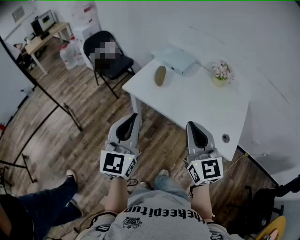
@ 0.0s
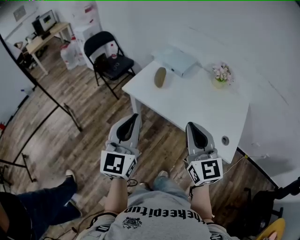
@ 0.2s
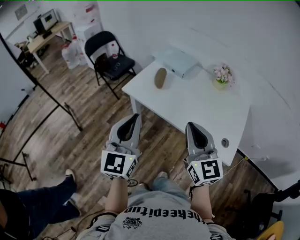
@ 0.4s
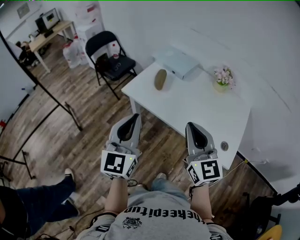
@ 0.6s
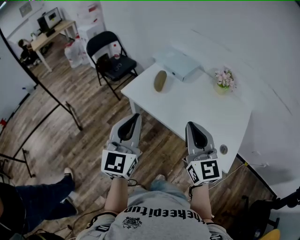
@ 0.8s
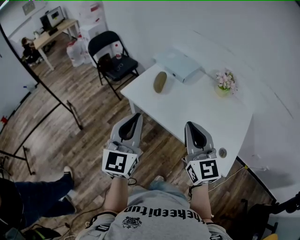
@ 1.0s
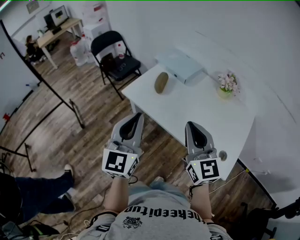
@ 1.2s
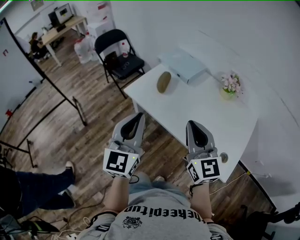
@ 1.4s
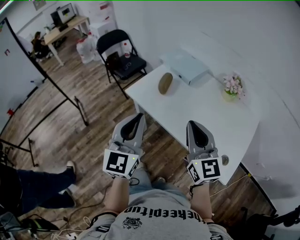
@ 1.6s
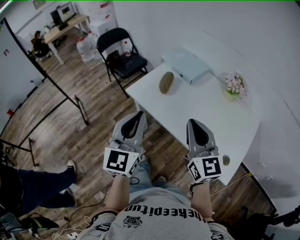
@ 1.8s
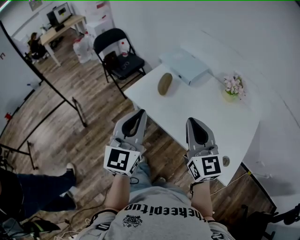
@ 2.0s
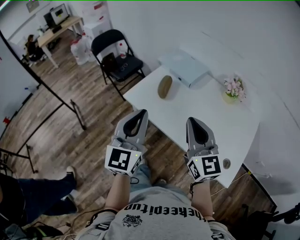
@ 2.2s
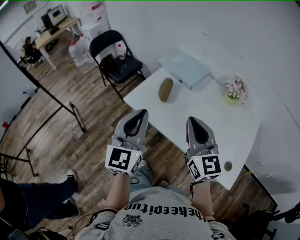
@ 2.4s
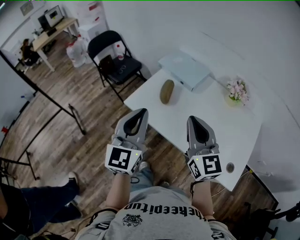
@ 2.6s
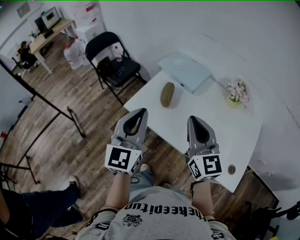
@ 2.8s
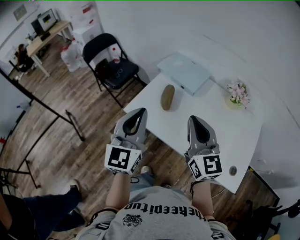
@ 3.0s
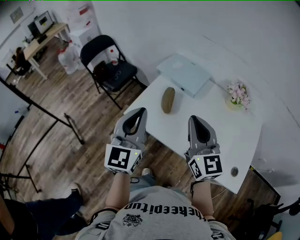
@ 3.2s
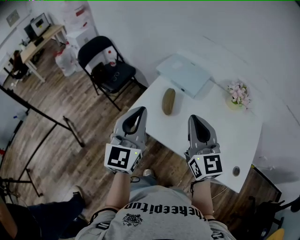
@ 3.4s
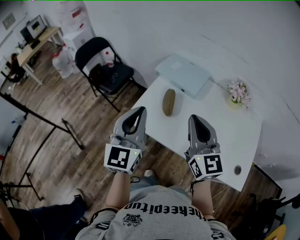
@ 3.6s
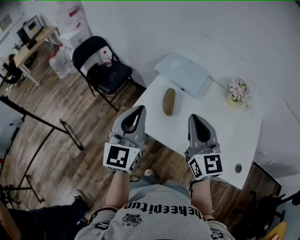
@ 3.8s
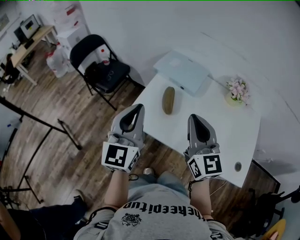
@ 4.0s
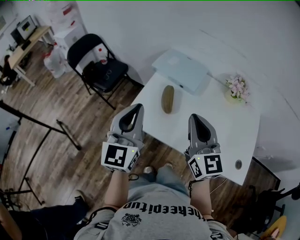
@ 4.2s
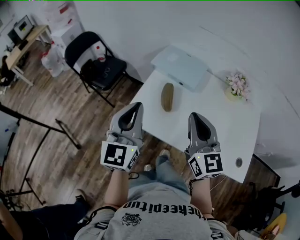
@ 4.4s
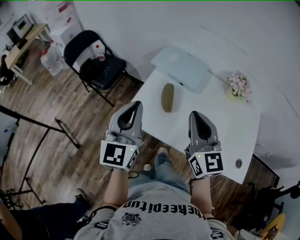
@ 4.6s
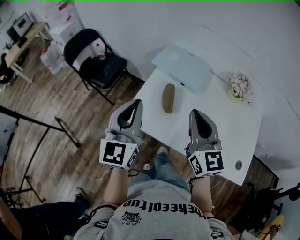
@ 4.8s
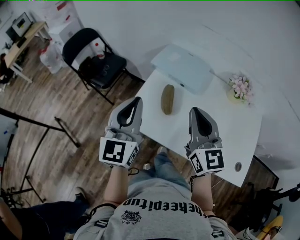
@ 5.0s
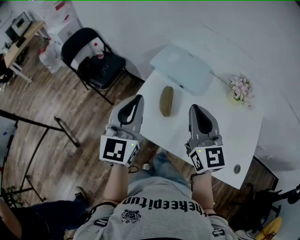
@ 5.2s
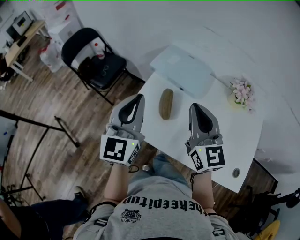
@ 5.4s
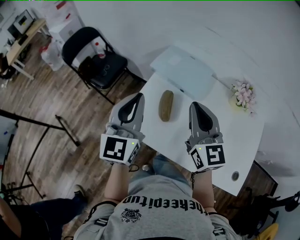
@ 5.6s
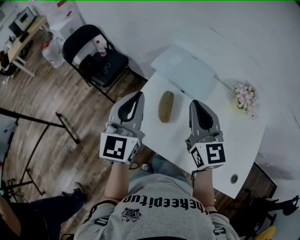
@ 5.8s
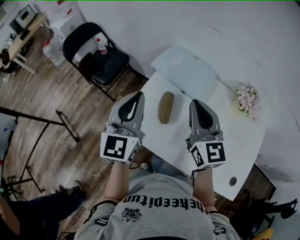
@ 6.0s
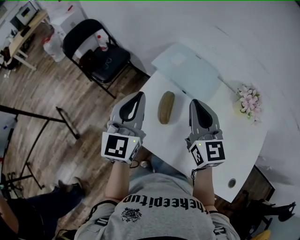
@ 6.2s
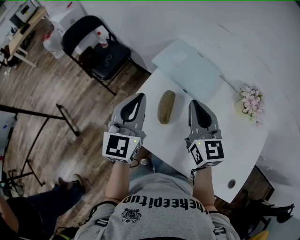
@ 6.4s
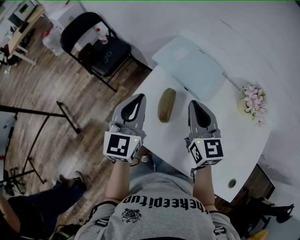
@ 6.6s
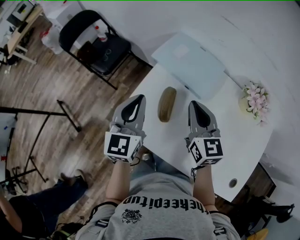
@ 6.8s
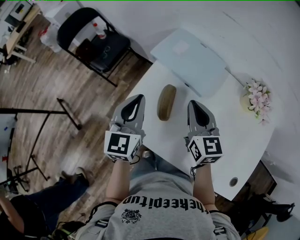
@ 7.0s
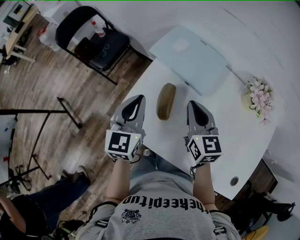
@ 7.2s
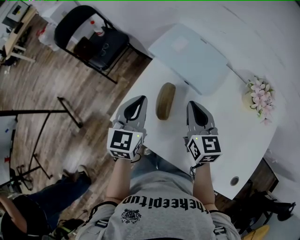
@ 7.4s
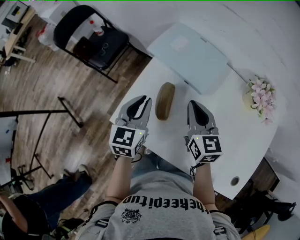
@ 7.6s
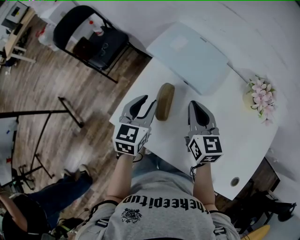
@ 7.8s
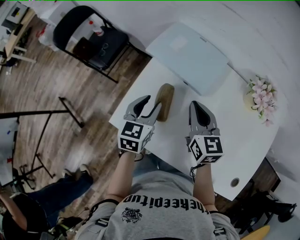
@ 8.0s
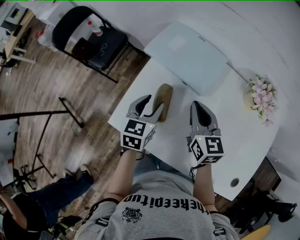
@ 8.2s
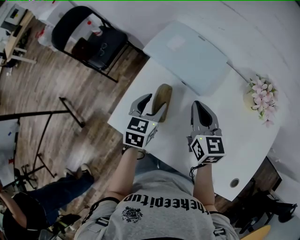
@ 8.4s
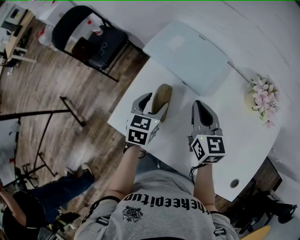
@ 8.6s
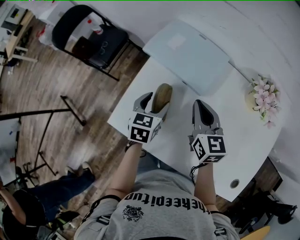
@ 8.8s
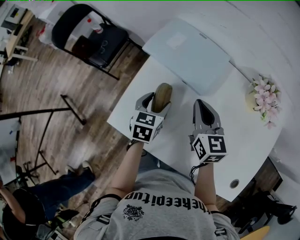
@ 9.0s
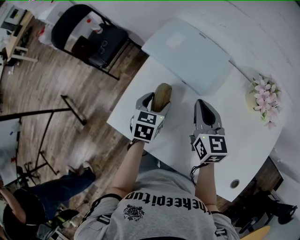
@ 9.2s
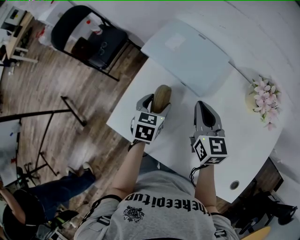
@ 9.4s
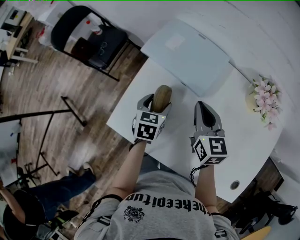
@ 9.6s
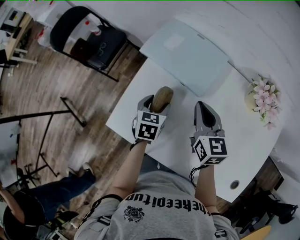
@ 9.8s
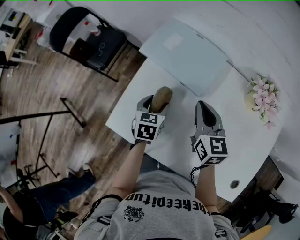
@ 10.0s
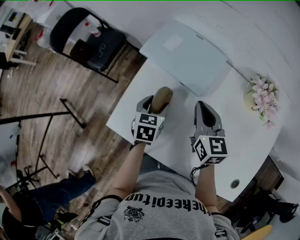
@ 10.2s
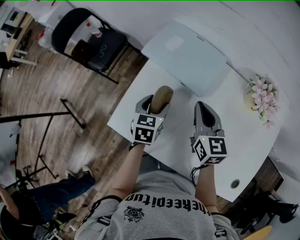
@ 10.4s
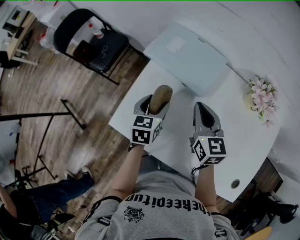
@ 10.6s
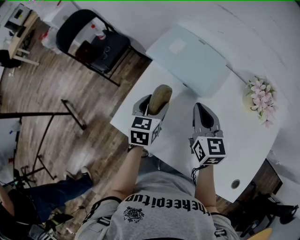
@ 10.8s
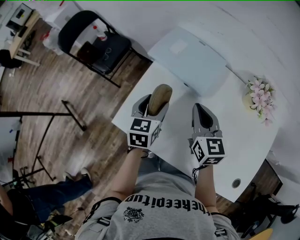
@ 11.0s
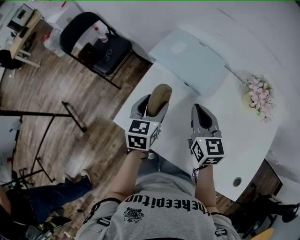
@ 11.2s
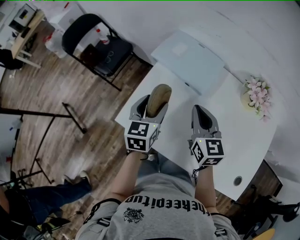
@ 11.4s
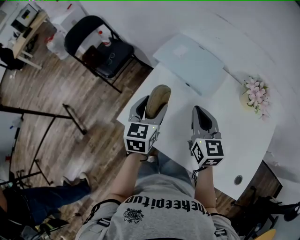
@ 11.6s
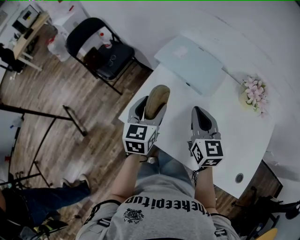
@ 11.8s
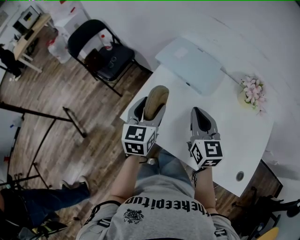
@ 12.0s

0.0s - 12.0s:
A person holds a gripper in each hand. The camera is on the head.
0.0s - 1.6s: The left gripper moves to the right and forward, about 10 cm. Meanwhile the right gripper heads forward and to the right, covering about 10 cm.
1.6s - 3.0s: The right gripper heads forward and to the left, covering some 15 cm; the left gripper travels forward by some 15 cm.
3.0s - 4.4s: The right gripper moves about 5 cm; the left gripper heads forward and to the left, covering about 10 cm.
4.4s - 6.0s: Both grippers travel together forward, approximately 15 cm.
6.0s - 7.6s: The two grippers go about 15 cm downward. The right gripper turns by about 20 degrees. The left gripper changes its angle by approximately 30 degrees.
7.6s - 9.0s: The left gripper travels downward and to the right by roughly 10 cm, changes its angle by about 20 degrees, and opens its fingers.
9.0s - 10.4s: The grippers move only a little.
10.4s - 12.0s: The left gripper travels upward, backward and to the left by roughly 15 cm, and rotates roughly 20 degrees. Meanwhile the right gripper goes roughly 15 cm backward, upward and to the left.

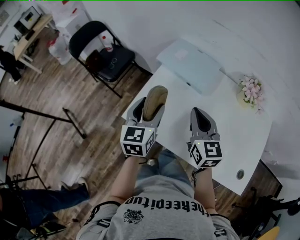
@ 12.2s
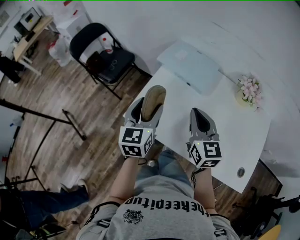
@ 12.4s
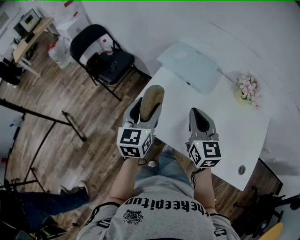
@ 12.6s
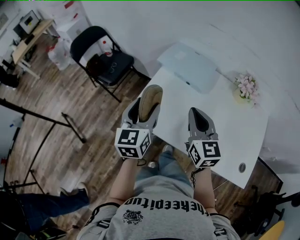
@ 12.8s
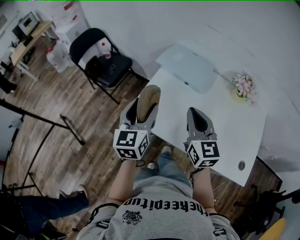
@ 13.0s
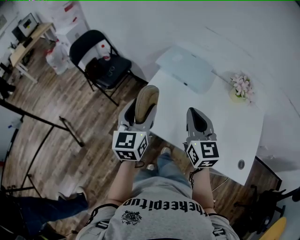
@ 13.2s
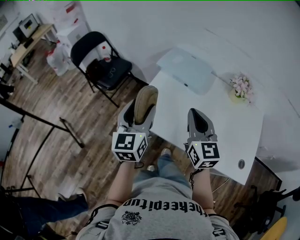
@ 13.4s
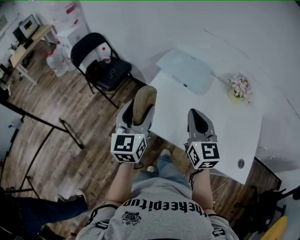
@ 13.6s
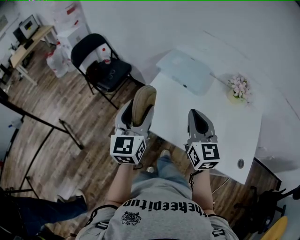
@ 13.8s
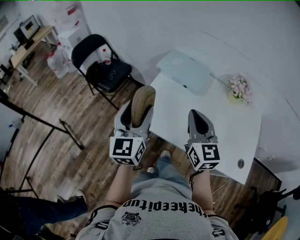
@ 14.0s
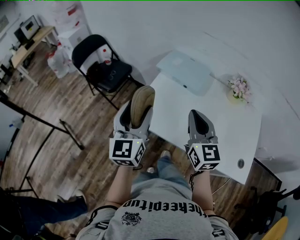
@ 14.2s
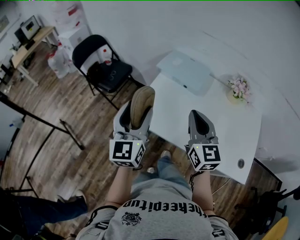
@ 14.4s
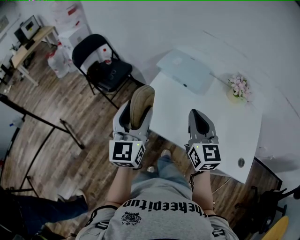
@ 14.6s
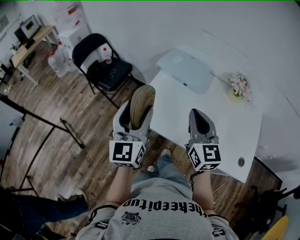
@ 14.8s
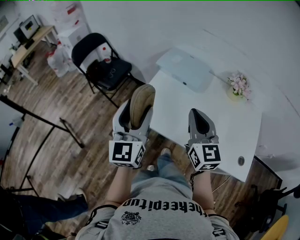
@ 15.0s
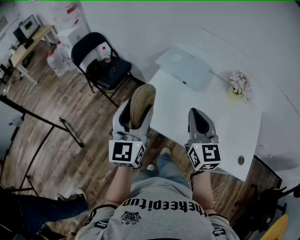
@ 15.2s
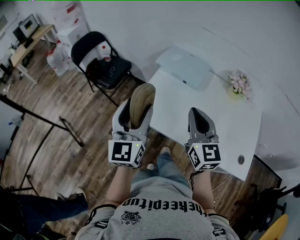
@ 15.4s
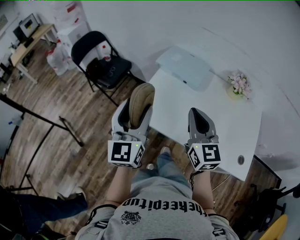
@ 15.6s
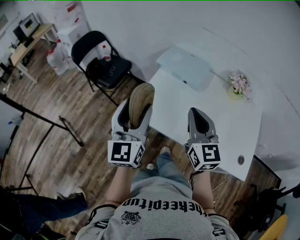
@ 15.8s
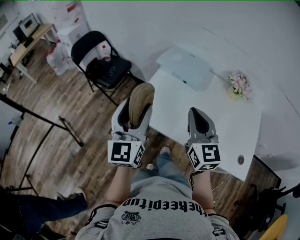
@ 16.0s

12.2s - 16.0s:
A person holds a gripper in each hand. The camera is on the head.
12.2s - 13.4s: The left gripper heads backward, to the left and upward, covering roughly 10 cm, while the right gripper goes roughly 5 cm backward.
13.4s - 14.8s: The left gripper moves roughly 5 cm.
14.8s - 16.0s: Neither gripper changes place.

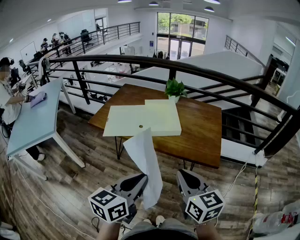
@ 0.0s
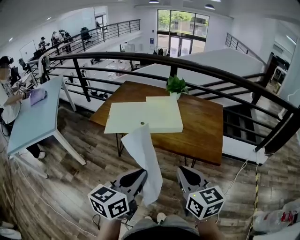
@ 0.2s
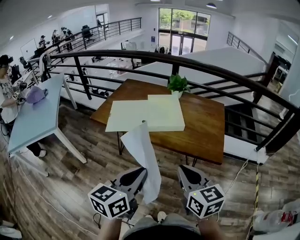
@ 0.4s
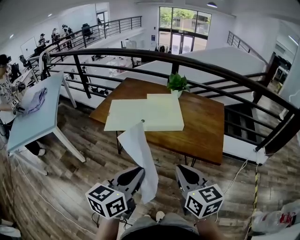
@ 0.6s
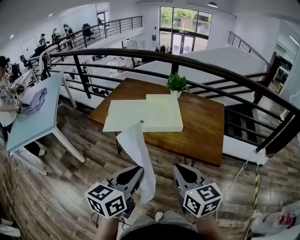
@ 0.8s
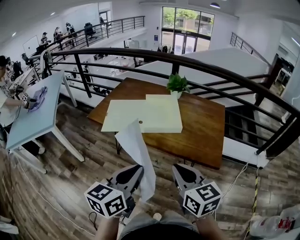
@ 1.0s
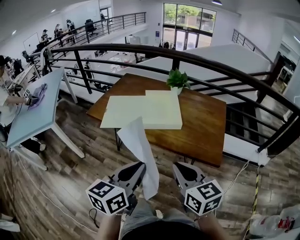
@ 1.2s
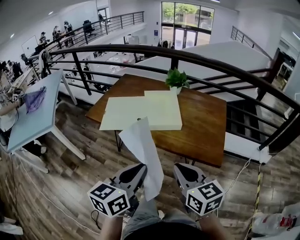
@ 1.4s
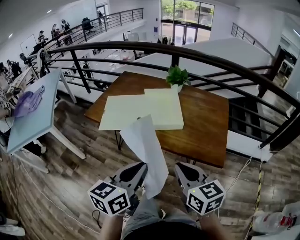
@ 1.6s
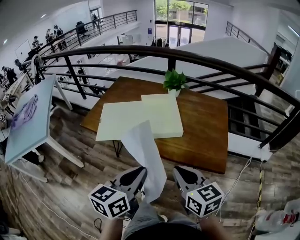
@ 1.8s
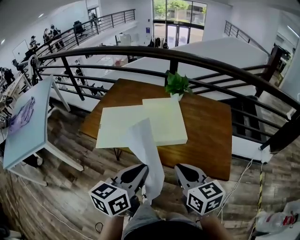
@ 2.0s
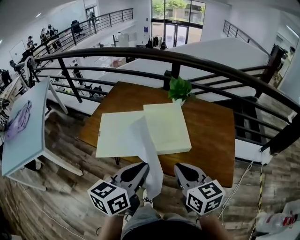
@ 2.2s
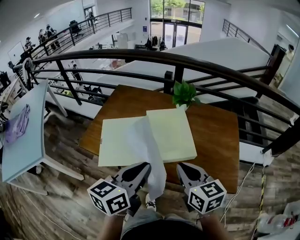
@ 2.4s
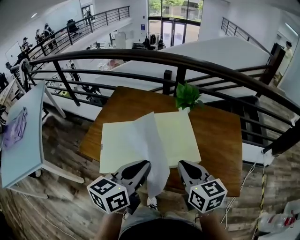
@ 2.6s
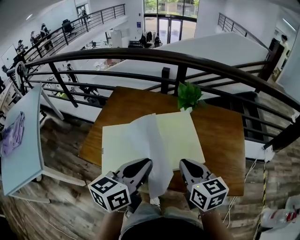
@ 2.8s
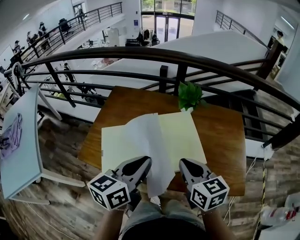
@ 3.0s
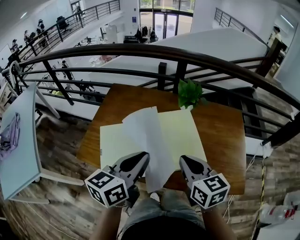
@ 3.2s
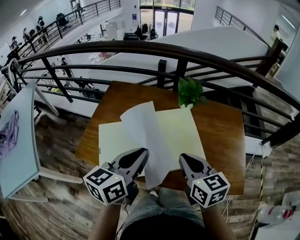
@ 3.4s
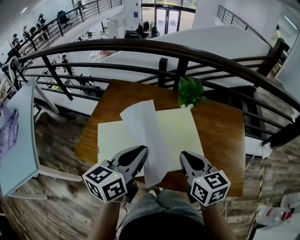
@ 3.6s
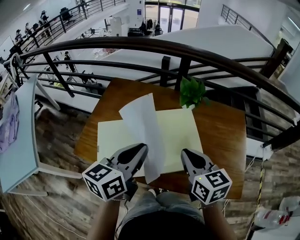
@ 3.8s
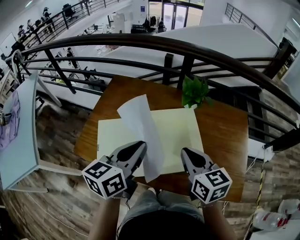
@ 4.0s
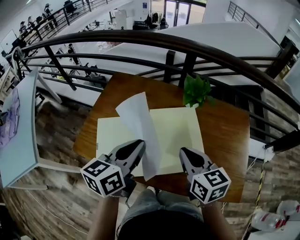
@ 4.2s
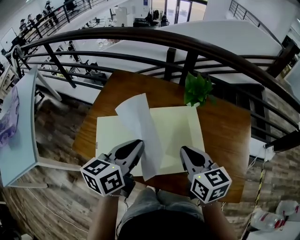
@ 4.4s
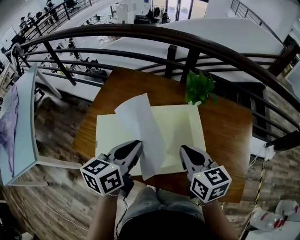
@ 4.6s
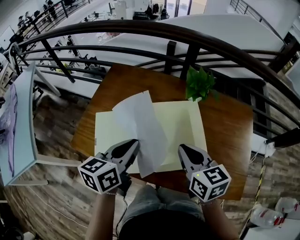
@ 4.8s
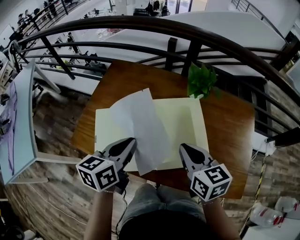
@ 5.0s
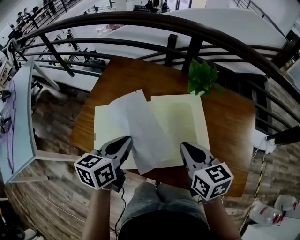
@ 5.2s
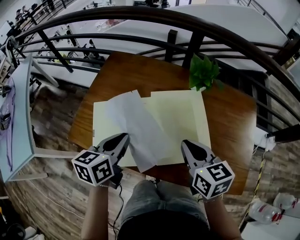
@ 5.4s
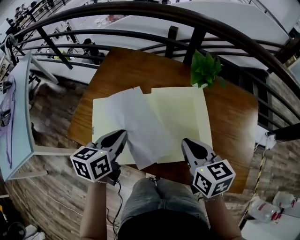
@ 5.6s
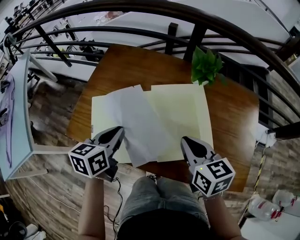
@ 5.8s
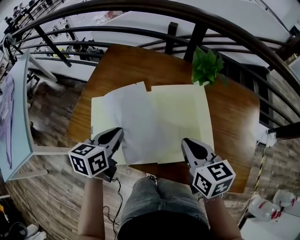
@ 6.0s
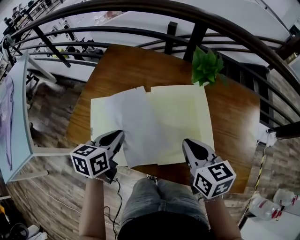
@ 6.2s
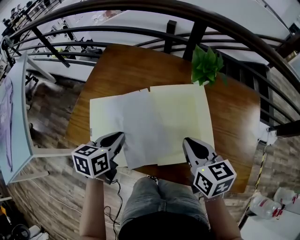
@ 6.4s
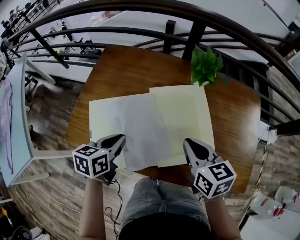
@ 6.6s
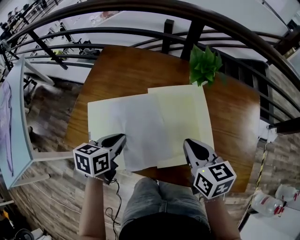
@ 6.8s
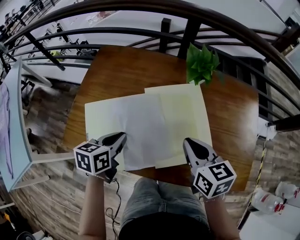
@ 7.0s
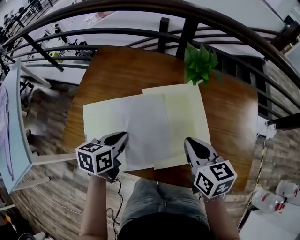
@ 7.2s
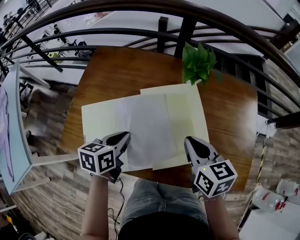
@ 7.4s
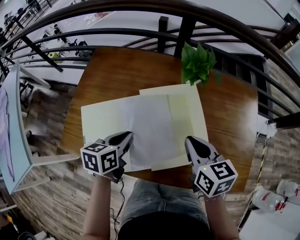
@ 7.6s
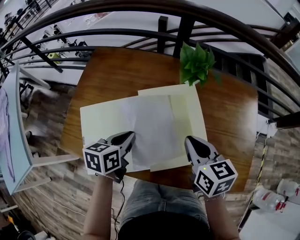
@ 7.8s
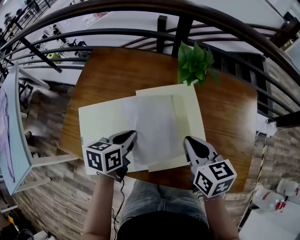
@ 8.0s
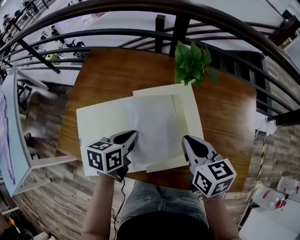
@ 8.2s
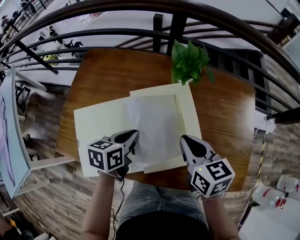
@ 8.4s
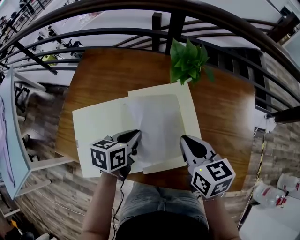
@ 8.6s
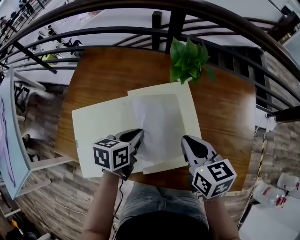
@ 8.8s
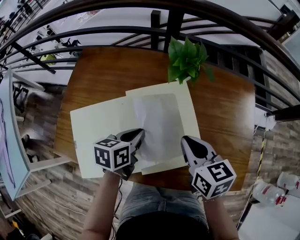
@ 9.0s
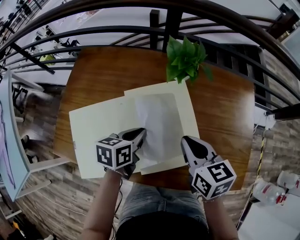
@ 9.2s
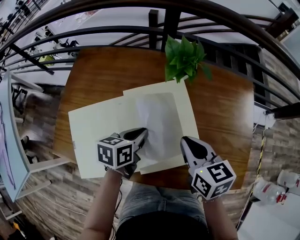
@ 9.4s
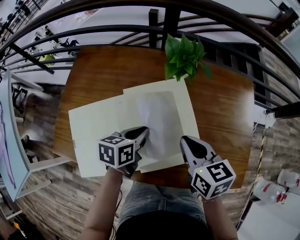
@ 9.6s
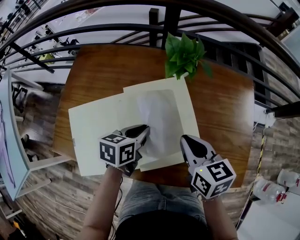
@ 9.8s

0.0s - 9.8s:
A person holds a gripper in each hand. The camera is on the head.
0.0s - 1.4s: The left gripper shifts approximately 5 cm forward, while the right gripper moves about 5 cm.
1.4s - 2.8s: The left gripper goes roughly 35 cm forward and to the left. Meanwhile the right gripper travels forward by approximately 30 cm.
2.8s - 4.2s: Both grippers move forward, about 10 cm.
4.2s - 5.6s: The left gripper travels downward and to the left by approximately 15 cm, while the right gripper is displaced downward by about 5 cm.
5.6s - 7.0s: The left gripper goes some 5 cm downward.
7.0s - 8.4s: The left gripper goes approximately 10 cm to the right.
8.4s - 9.8s: The left gripper travels to the right by roughly 5 cm.
